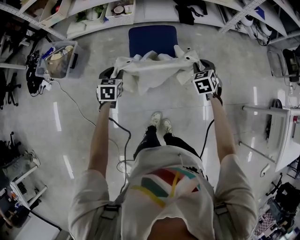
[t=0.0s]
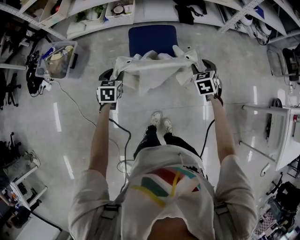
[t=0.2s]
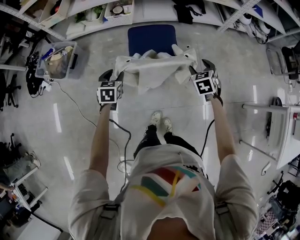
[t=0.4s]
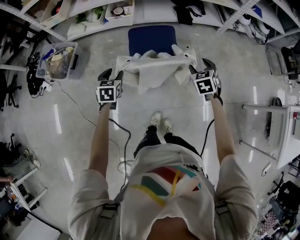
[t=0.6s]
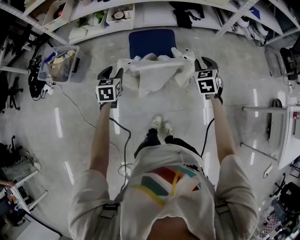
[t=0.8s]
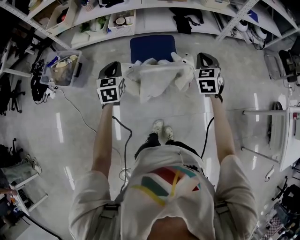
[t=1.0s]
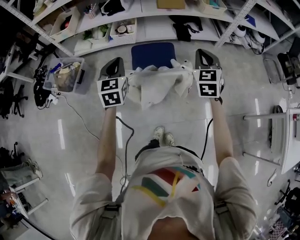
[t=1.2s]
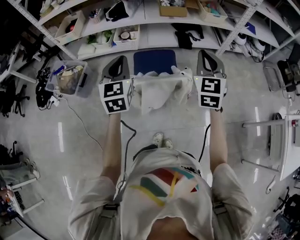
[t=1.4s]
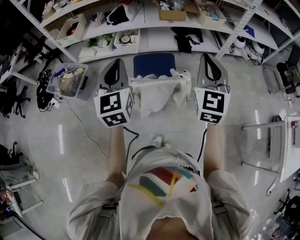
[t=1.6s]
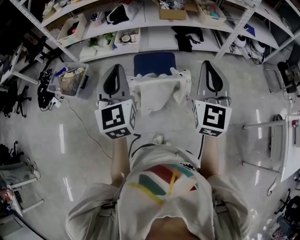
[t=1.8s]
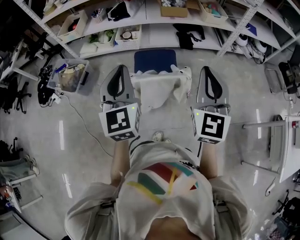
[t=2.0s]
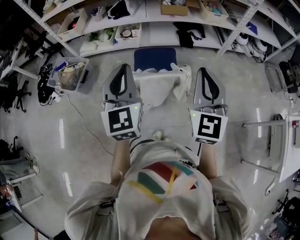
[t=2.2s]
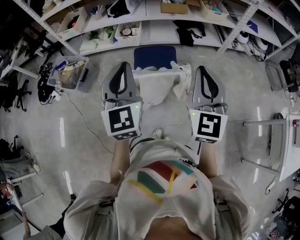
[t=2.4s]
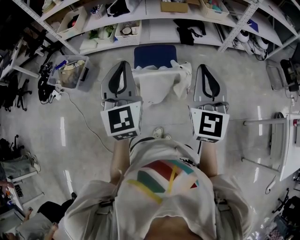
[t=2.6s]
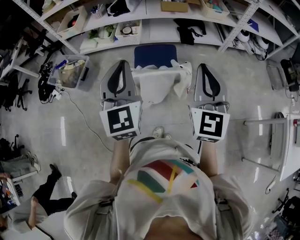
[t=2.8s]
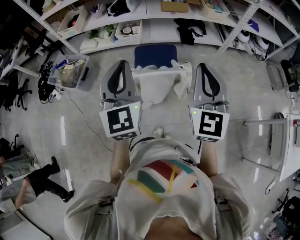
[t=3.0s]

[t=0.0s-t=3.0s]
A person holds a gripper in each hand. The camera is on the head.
t=0.0s to t=1.6s: Both grippers move upward, about 35 cm. The right gripper angles its fingers upward, by approximately 50 degrees, and closes up. The left gripper angles its fingers upward, by approximately 40 degrees, and closes.
t=1.6s to t=3.0s: The two grippers go roughly 5 cm backward.

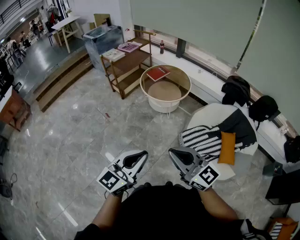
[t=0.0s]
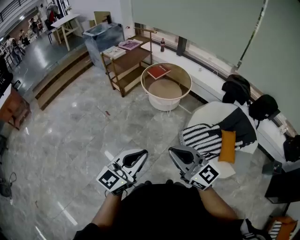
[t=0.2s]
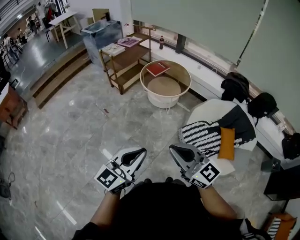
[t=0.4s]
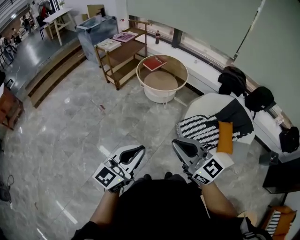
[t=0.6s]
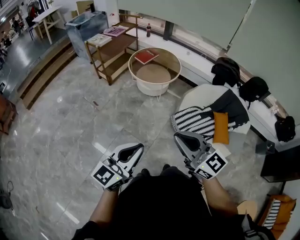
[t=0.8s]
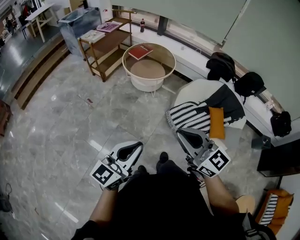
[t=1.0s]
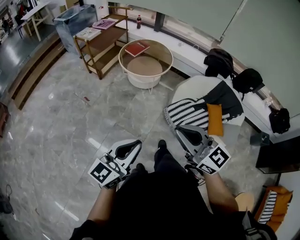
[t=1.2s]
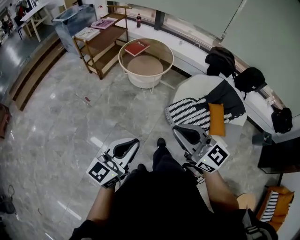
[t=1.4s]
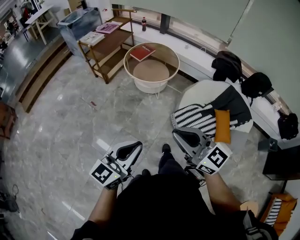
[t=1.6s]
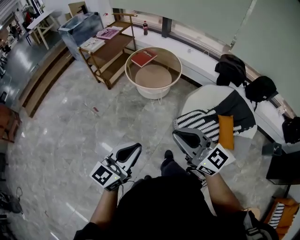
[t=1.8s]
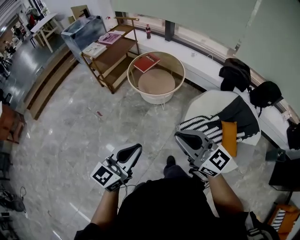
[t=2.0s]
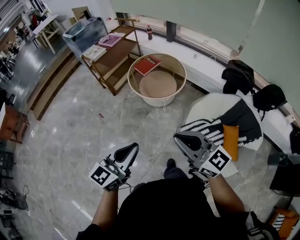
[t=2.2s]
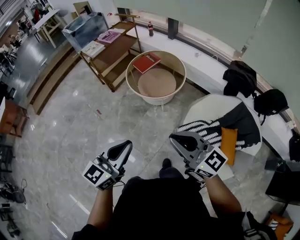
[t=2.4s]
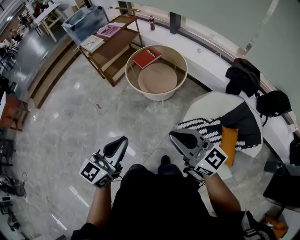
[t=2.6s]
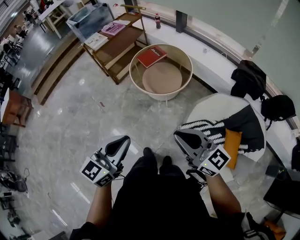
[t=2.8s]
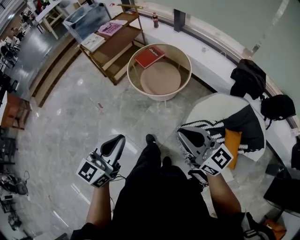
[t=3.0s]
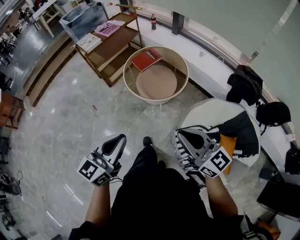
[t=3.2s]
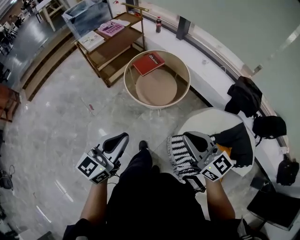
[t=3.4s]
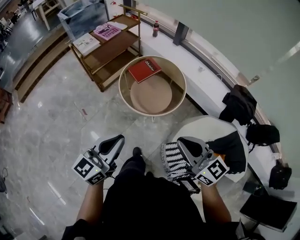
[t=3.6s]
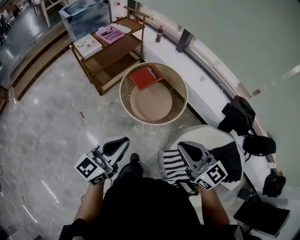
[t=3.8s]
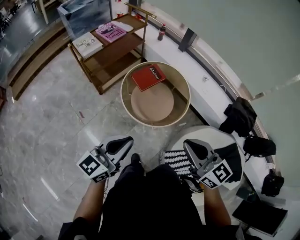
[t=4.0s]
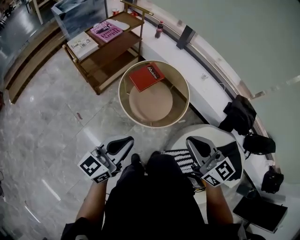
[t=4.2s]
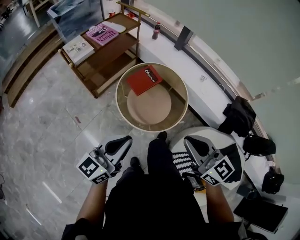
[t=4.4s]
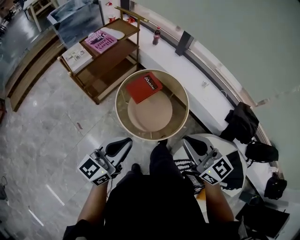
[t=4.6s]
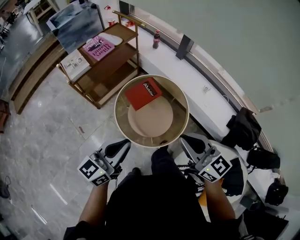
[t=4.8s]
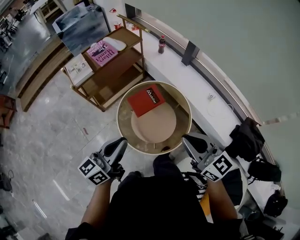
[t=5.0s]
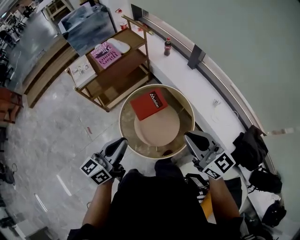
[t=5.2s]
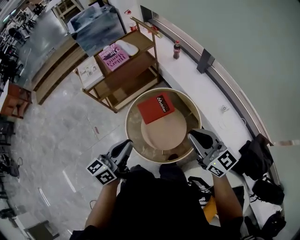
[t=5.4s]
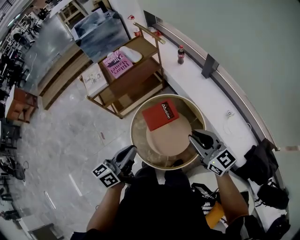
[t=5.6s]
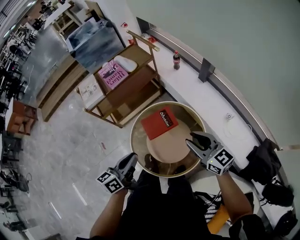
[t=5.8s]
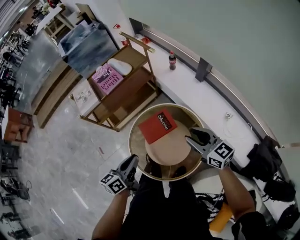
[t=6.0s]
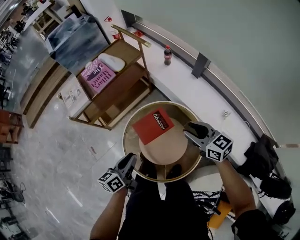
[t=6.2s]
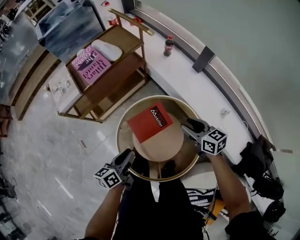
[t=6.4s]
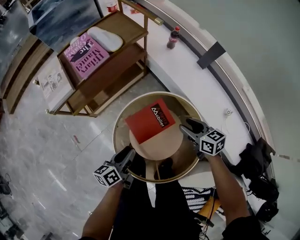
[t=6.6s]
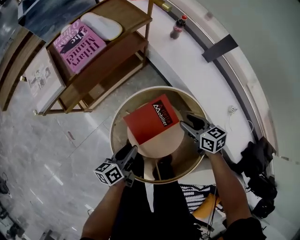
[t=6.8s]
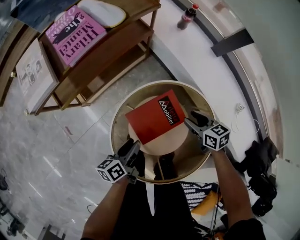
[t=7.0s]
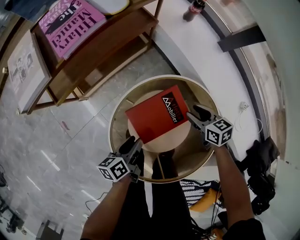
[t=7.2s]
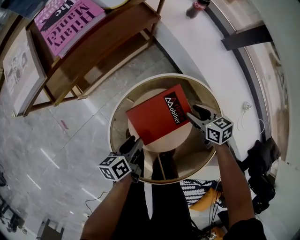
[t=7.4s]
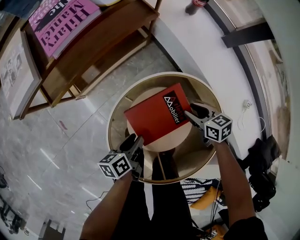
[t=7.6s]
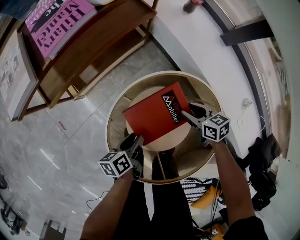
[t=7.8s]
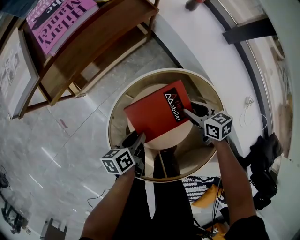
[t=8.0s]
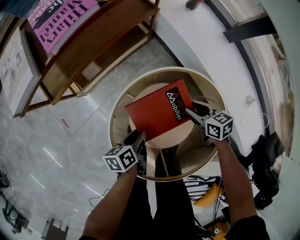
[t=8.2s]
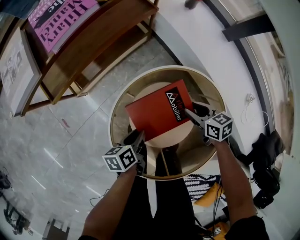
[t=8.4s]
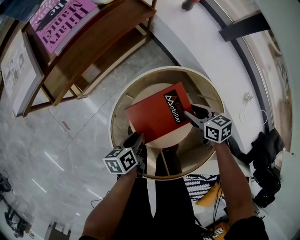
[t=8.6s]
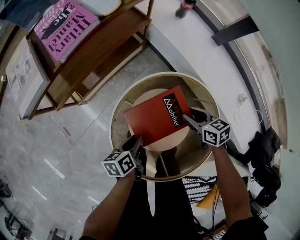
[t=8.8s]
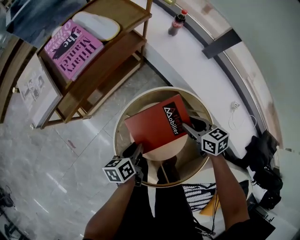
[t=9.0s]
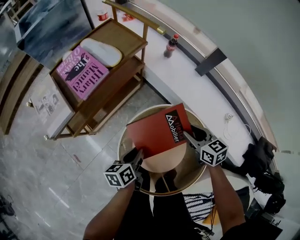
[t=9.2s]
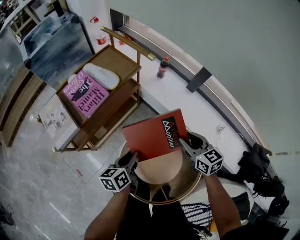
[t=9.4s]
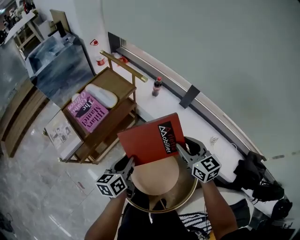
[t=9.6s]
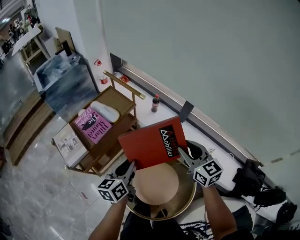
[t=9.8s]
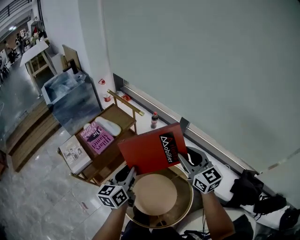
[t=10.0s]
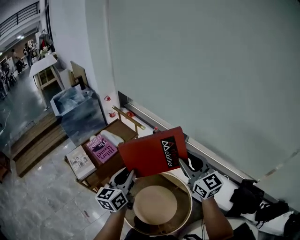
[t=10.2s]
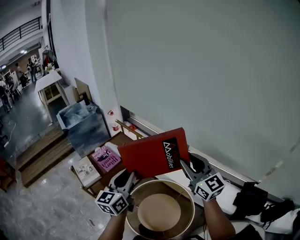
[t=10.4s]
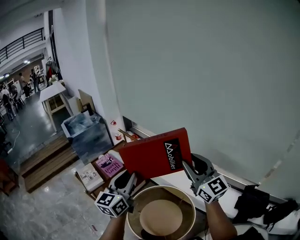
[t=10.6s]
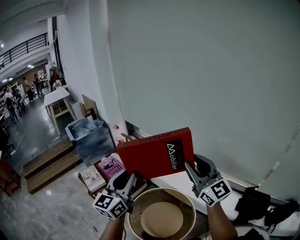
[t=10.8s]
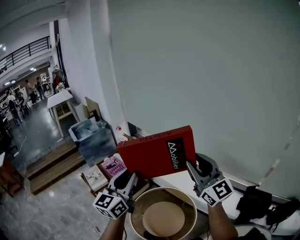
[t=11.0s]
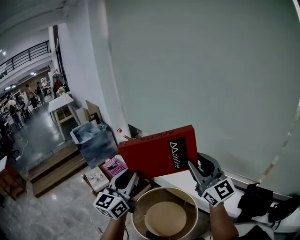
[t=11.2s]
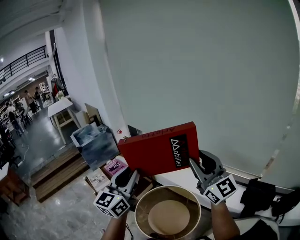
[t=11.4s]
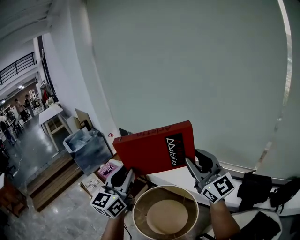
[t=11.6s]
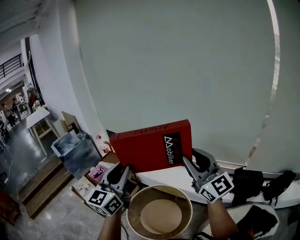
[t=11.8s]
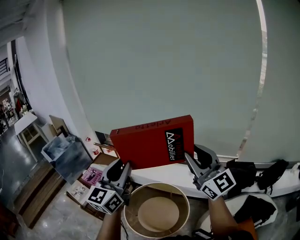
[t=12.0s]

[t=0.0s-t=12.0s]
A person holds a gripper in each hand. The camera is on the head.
t=0.0s to t=1.6s: The right gripper heads forward, covering some 5 cm; the left gripper moves roughly 5 cm.
t=1.6s to t=3.0s: The left gripper shifts some 25 cm forward. The right gripper travels forward and to the right by roughly 30 cm.
t=3.0s to t=4.4s: Both grippers travel together forward, about 30 cm.
t=4.4s to t=6.0s: The left gripper heads forward and downward, covering about 30 cm, and swivels approximately 40 degrees; the right gripper is displaced forward by approximately 35 cm, and opens up.
t=6.0s to t=7.6s: Both grippers travel together downward, some 35 cm. The right gripper tips its fingers downward by approximately 30 degrees; the left gripper turns by approximately 30 degrees, and opens up.
t=7.6s to t=9.0s: The two grippers go approximately 10 cm upward.
t=9.0s to t=10.4s: Both grippers travel together upward, some 60 cm. The left gripper angles its fingers upward, by roughly 40 degrees, while the right gripper tips its fingers upward by about 50 degrees.
t=10.4s to t=12.0s: The right gripper heads backward, upward and to the right, covering approximately 25 cm, and swivels some 30 degrees. Meanwhile the left gripper is displaced upward, backward and to the right by approximately 25 cm, and changes its angle by some 30 degrees.

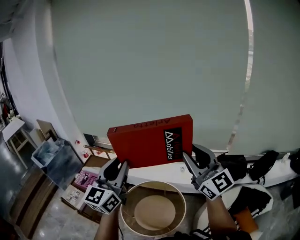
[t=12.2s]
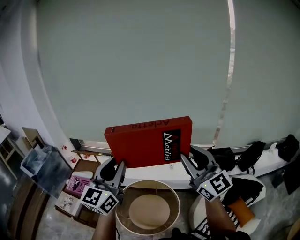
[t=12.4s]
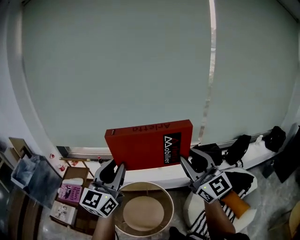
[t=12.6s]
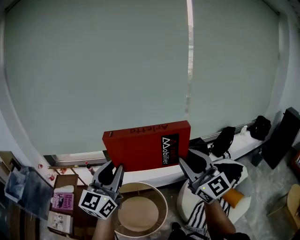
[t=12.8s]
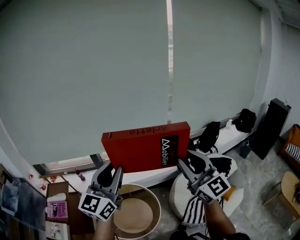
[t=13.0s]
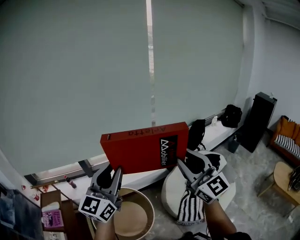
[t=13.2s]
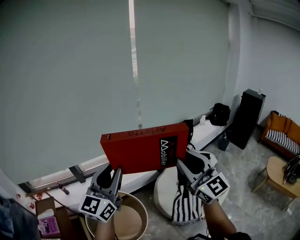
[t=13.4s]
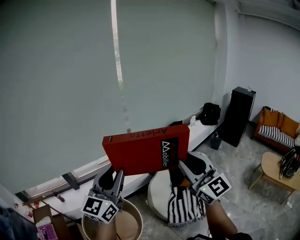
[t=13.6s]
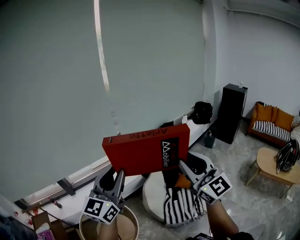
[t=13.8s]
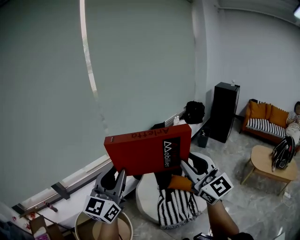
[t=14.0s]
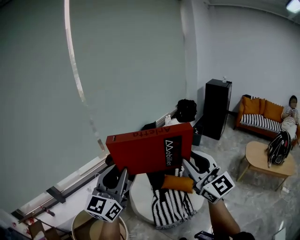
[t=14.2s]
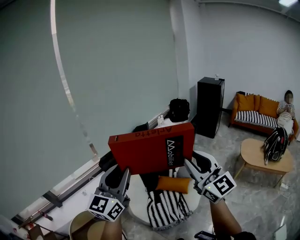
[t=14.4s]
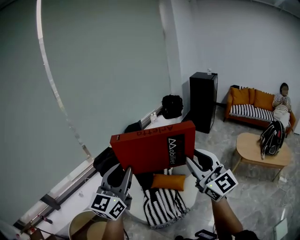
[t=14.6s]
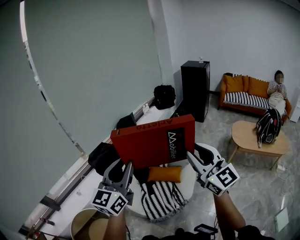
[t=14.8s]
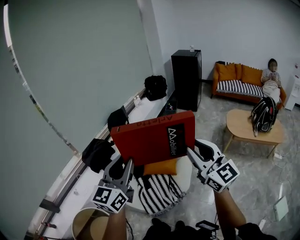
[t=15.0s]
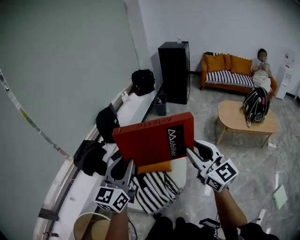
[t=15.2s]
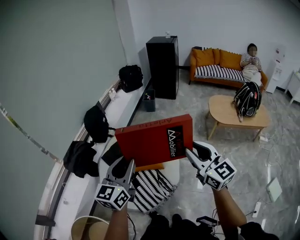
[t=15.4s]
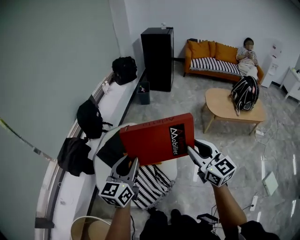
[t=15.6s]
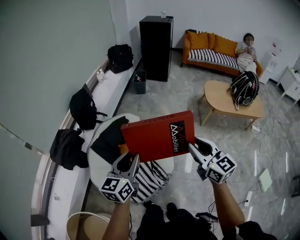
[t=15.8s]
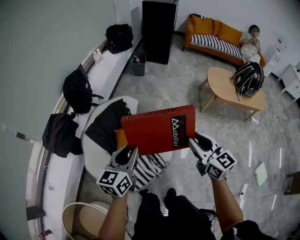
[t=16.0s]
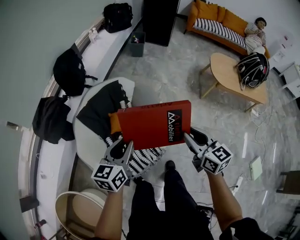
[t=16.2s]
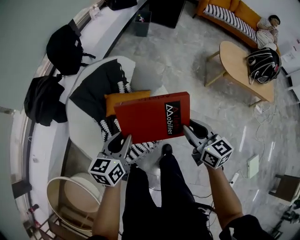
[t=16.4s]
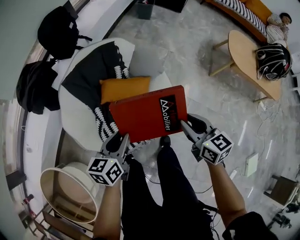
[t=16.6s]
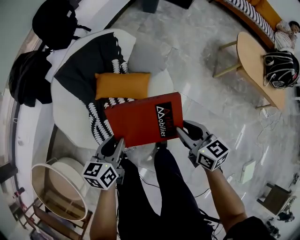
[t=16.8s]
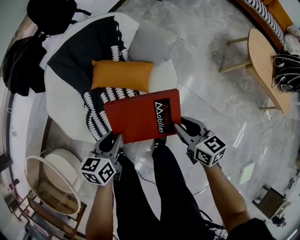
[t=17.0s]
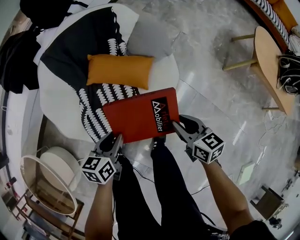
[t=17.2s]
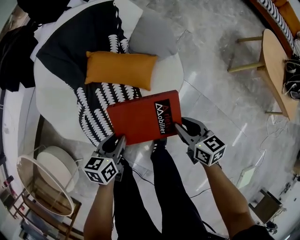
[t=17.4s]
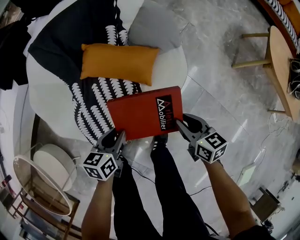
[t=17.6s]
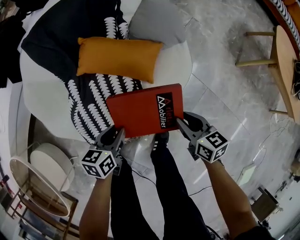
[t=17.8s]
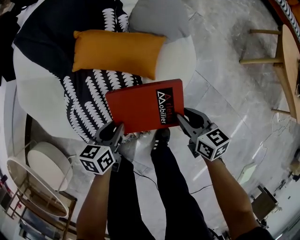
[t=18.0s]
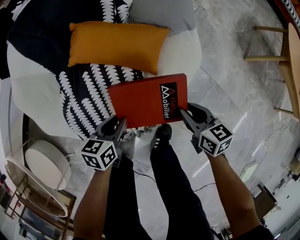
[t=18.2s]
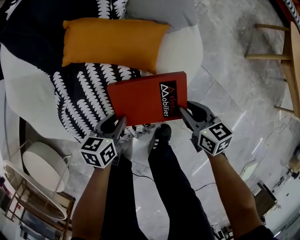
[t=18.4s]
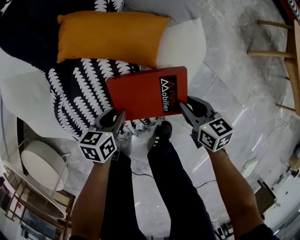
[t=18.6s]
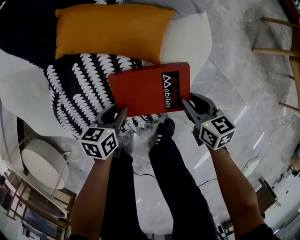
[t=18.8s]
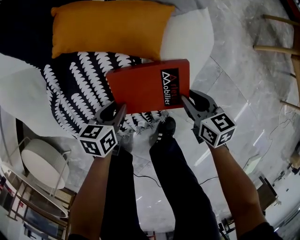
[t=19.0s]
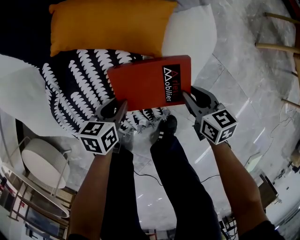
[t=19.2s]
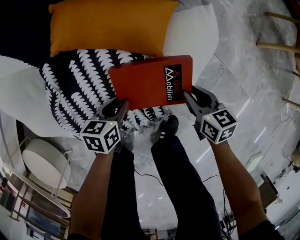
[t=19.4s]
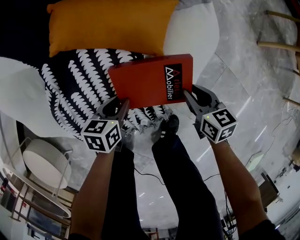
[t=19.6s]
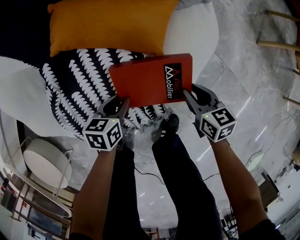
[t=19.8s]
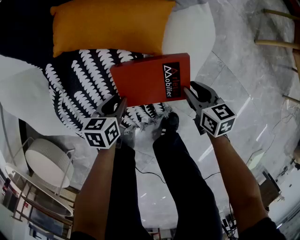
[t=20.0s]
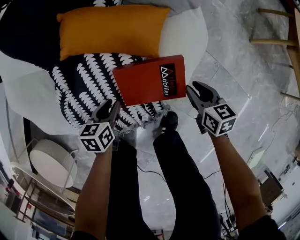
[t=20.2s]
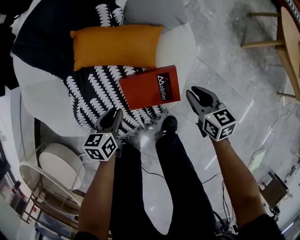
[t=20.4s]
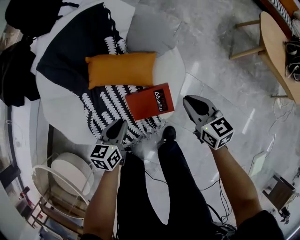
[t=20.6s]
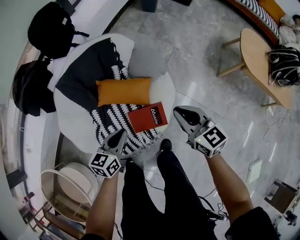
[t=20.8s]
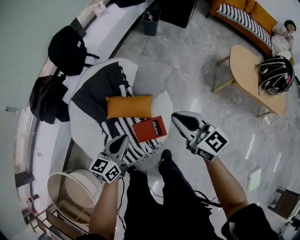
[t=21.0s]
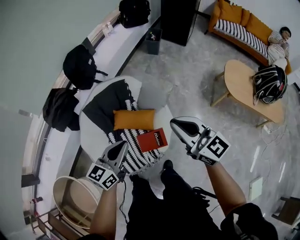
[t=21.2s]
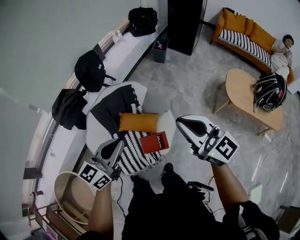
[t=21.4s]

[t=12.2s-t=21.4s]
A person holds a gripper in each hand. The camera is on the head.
t=12.2s to t=13.8s: The two grippers travel together, roughly 50 cm. The right gripper rotates approximately 50 degrees, while the left gripper swivels about 50 degrees.
t=13.8s to t=15.2s: The left gripper ends up approximately 40 cm from where it was, and turns by approximately 30 degrees, while the right gripper moves about 35 cm, and turns by approximately 30 degrees.
t=15.2s to t=16.8s: The grippers both shift downward by some 50 cm. The right gripper tips its fingers downward by roughly 40 degrees. Meanwhile the left gripper points its fingers about 30 degrees further downward.
t=16.8s to t=18.4s: The two grippers go approximately 35 cm downward.
t=18.4s to t=19.8s: Both grippers travel together downward, approximately 10 cm.
t=19.8s to t=21.4s: The two grippers go about 80 cm upward. The right gripper tilts its fingers about 50 degrees upward, and closes up. The left gripper angles its fingers upward, by roughly 40 degrees, and closes up.
